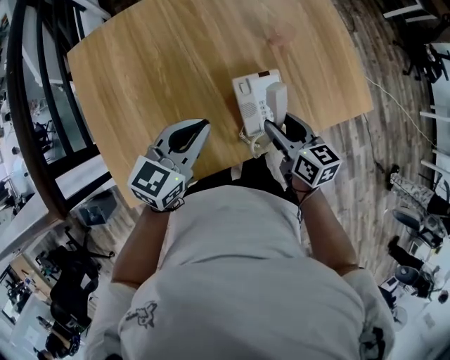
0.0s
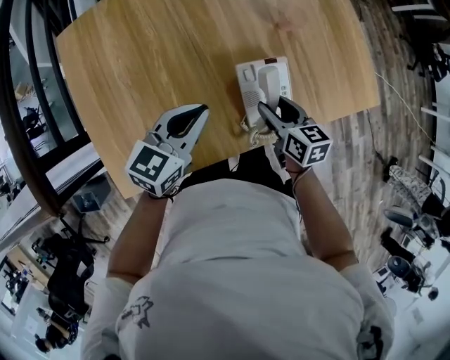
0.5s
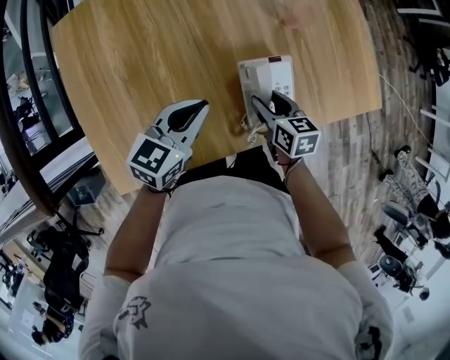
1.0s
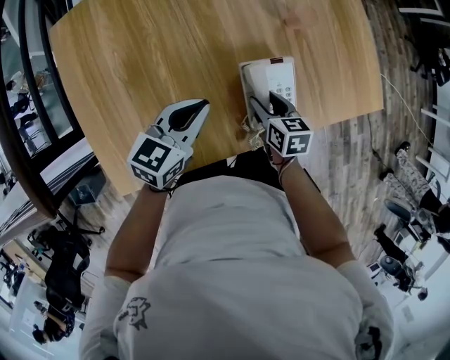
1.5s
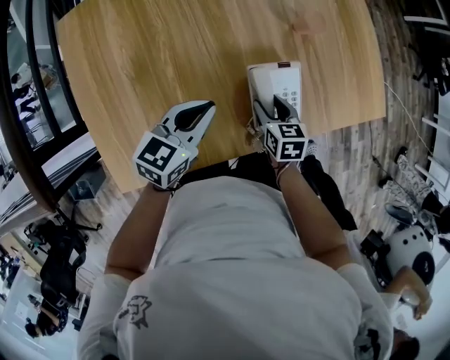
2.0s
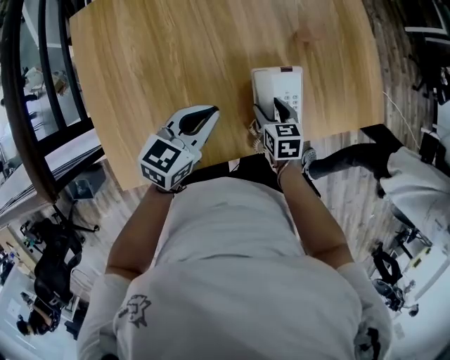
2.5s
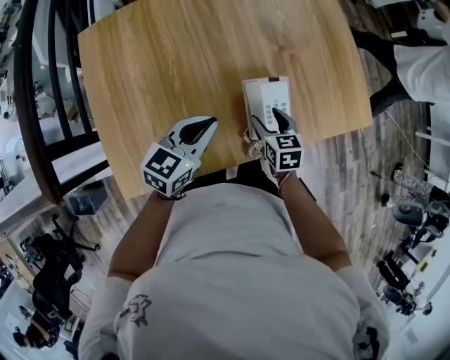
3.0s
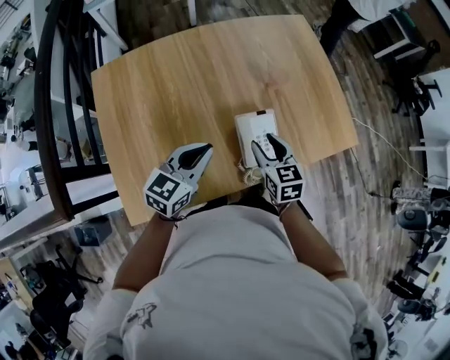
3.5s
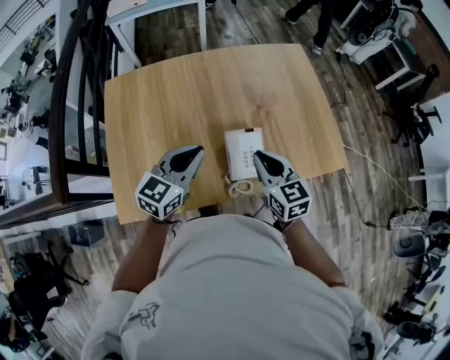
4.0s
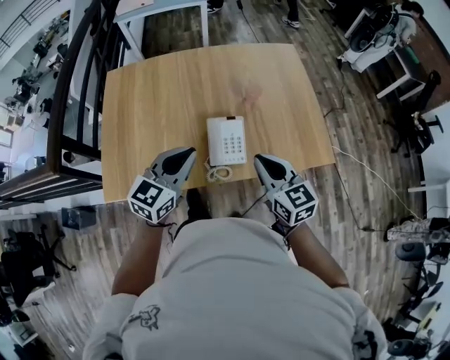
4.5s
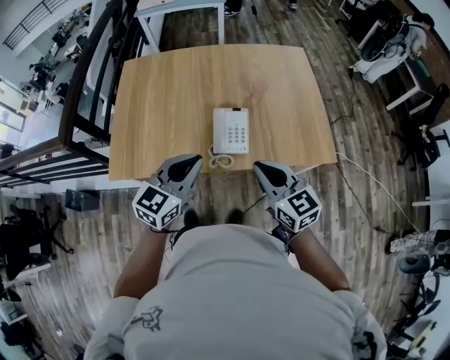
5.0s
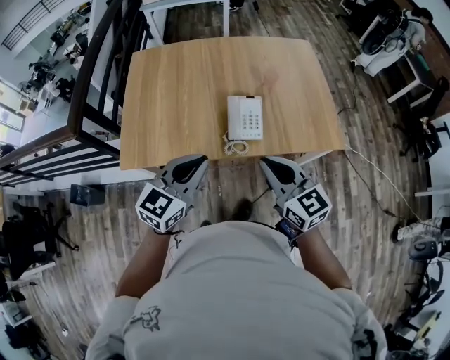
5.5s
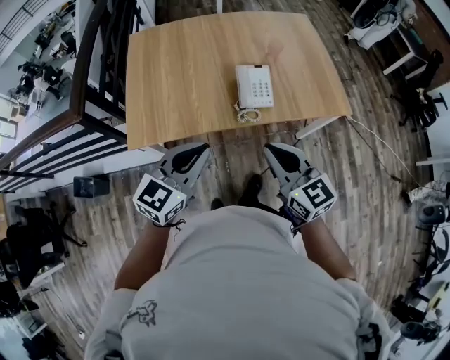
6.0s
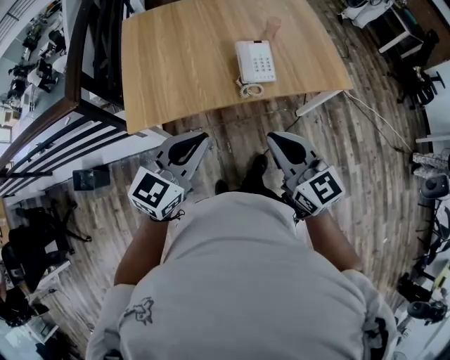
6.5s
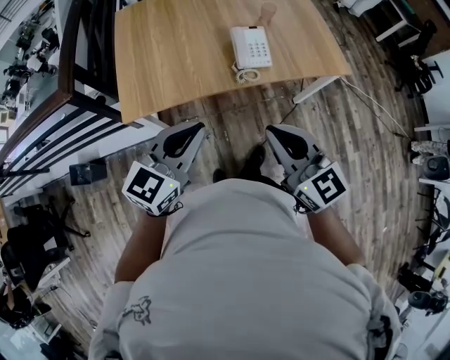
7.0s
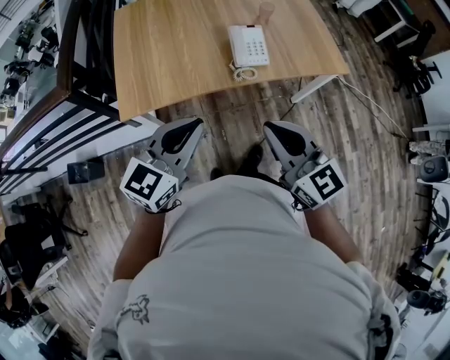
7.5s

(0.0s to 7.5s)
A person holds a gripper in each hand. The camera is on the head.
0.0s - 2.0s: The left gripper moves downward, approximately 10 cm. The right gripper goes some 15 cm downward, and rotates approximately 20 degrees.
2.0s - 4.0s: The left gripper travels upward by some 15 cm, and swivels approximately 20 degrees; the right gripper is displaced upward by roughly 25 cm, changes its angle by some 30 degrees, and closes its fingers.
4.0s - 5.5s: Both grippers move backward, about 25 cm. The right gripper turns by approximately 20 degrees.
5.5s - 7.5s: The grippers both shift backward and to the left by about 15 cm.

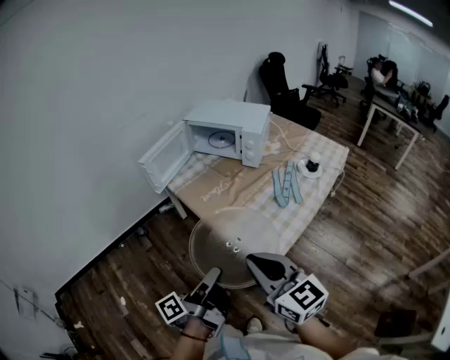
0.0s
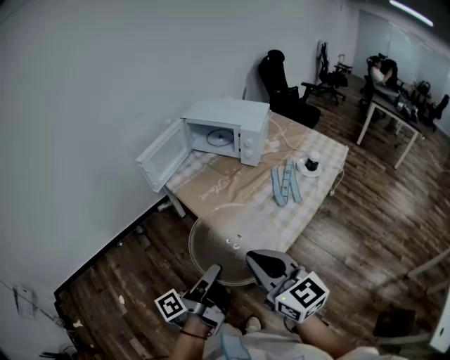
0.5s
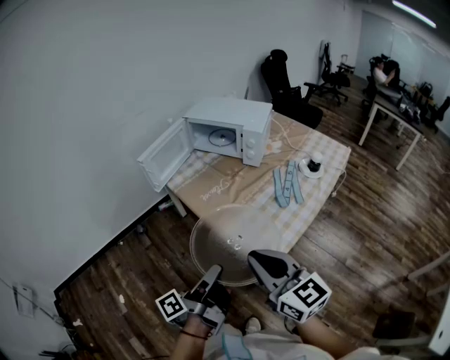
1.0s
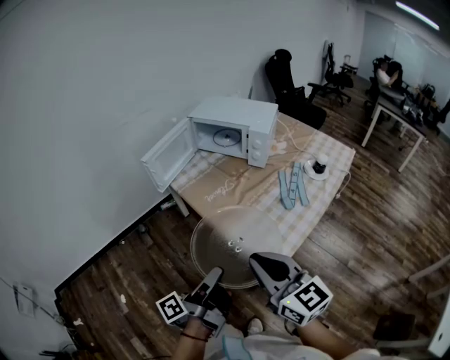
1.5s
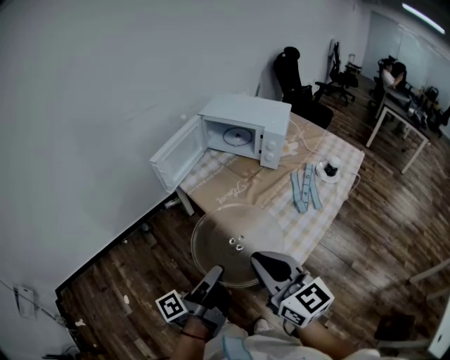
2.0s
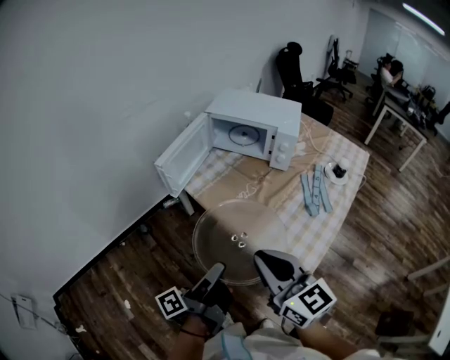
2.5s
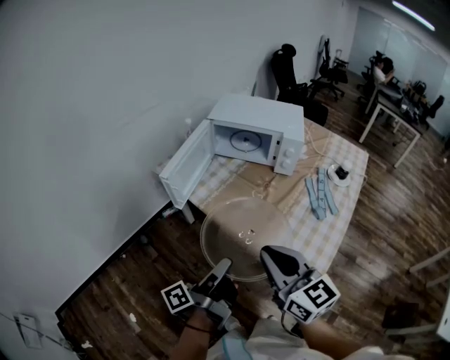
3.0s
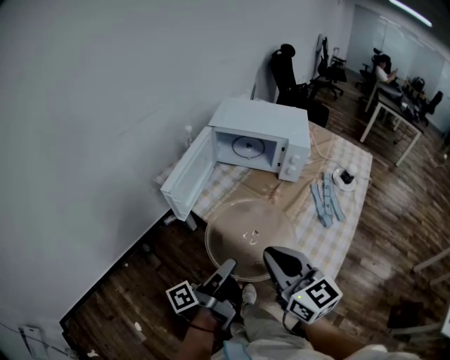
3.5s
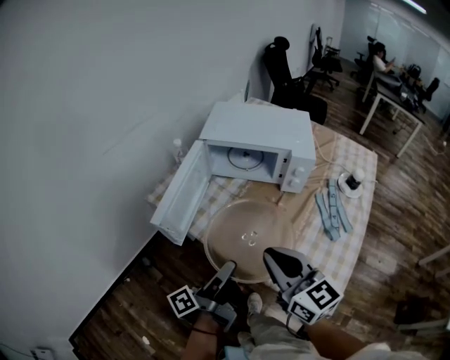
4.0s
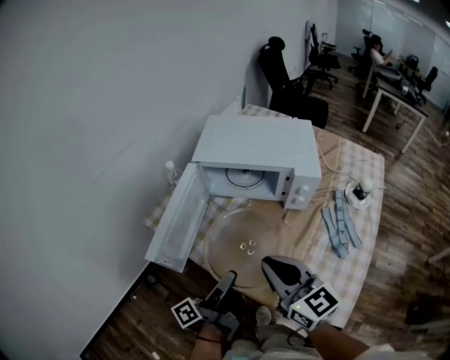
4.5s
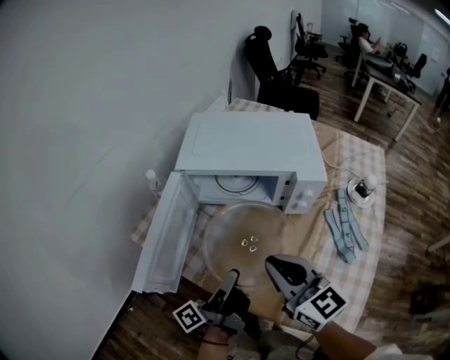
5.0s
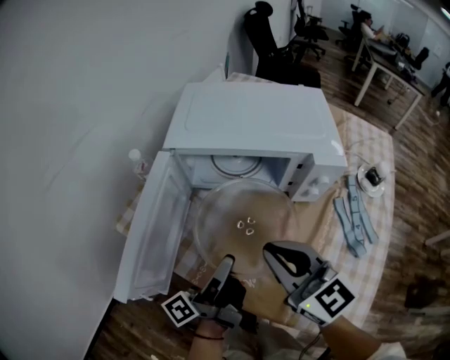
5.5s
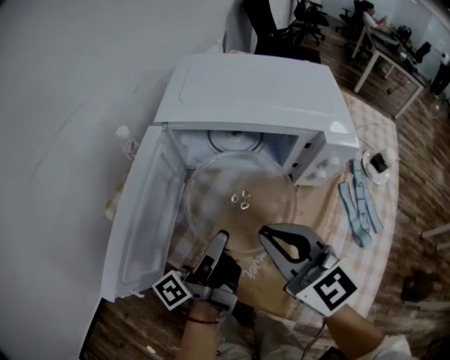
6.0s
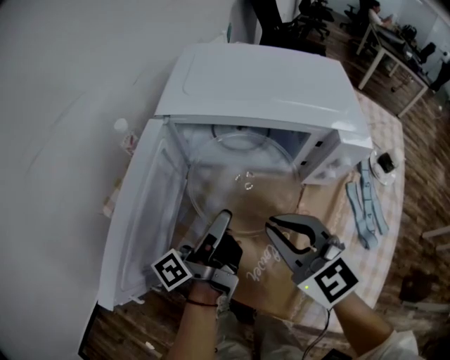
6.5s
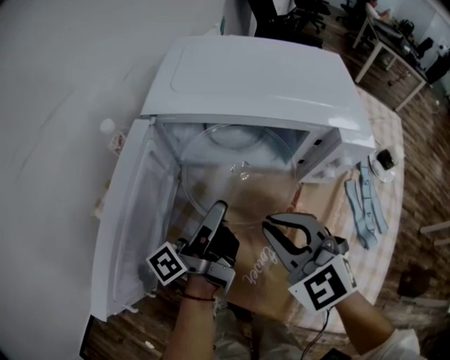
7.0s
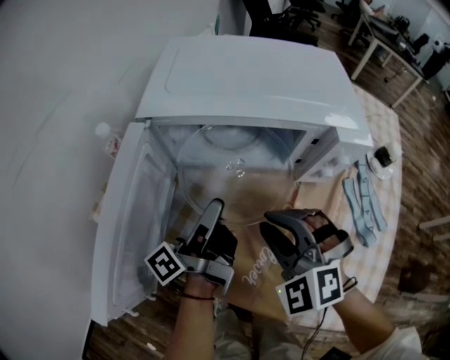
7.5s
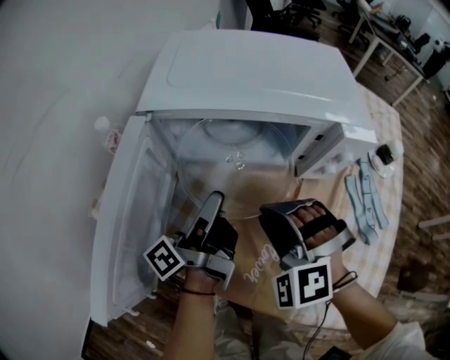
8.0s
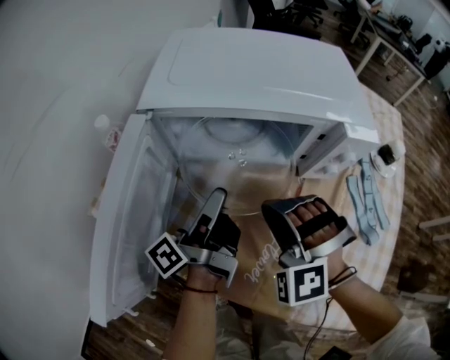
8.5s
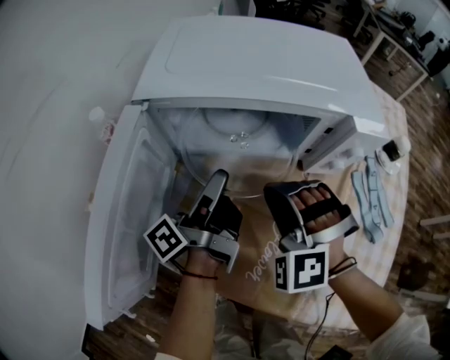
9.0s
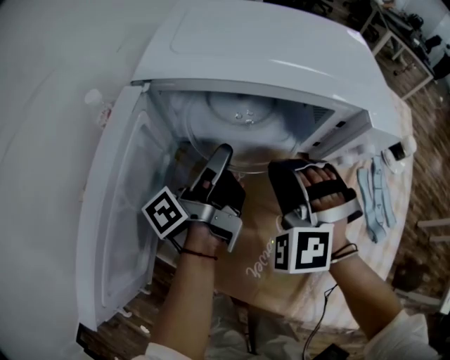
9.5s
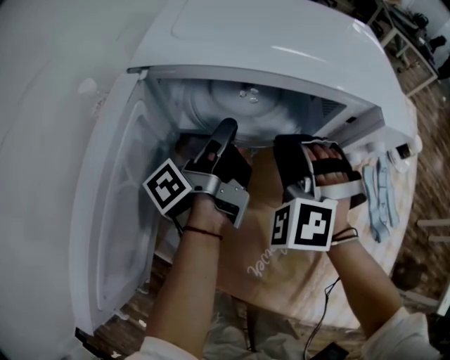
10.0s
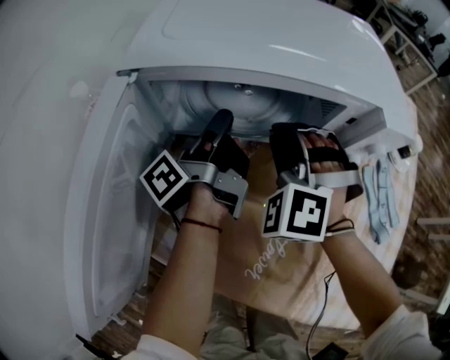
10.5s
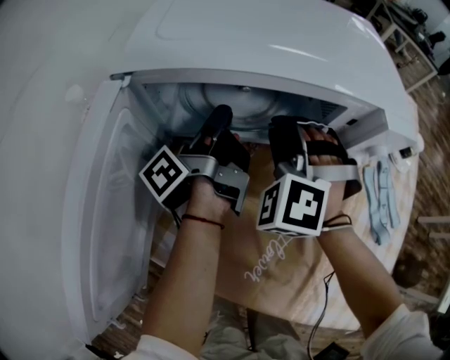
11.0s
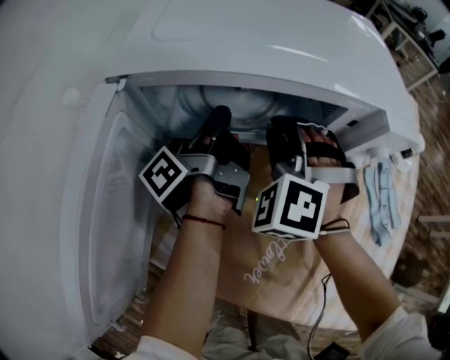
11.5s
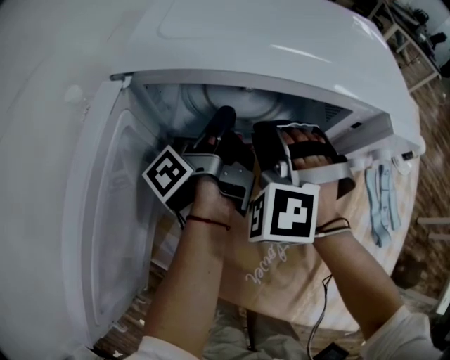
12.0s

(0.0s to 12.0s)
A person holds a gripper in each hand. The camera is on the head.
0.0s - 2.0s: The right gripper moves roughly 10 cm.
2.0s - 4.0s: The right gripper shifts by approximately 25 cm.
4.0s - 6.0s: The right gripper ends up roughly 20 cm from where it was.
6.0s - 8.0s: The right gripper moves downward, approximately 10 cm, and rotates around the line of its fingers by roughly 60 degrees, counterclockwise from behind.
8.0s - 10.0s: The right gripper ends up some 10 cm from where it was.

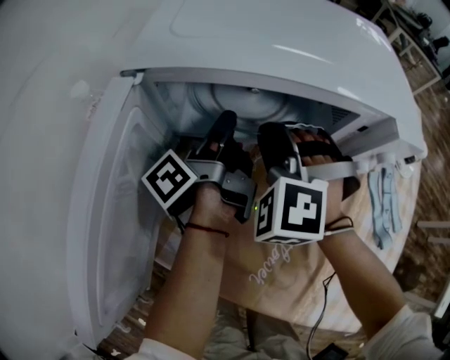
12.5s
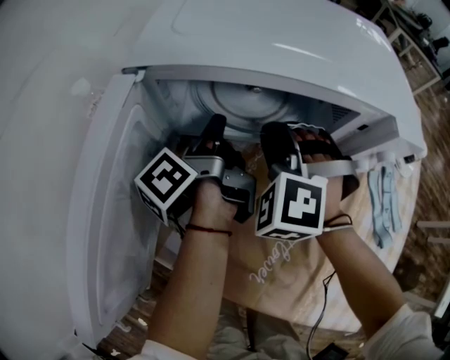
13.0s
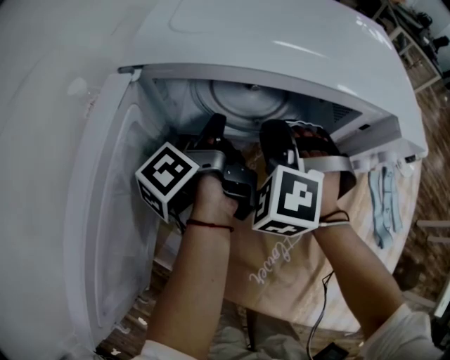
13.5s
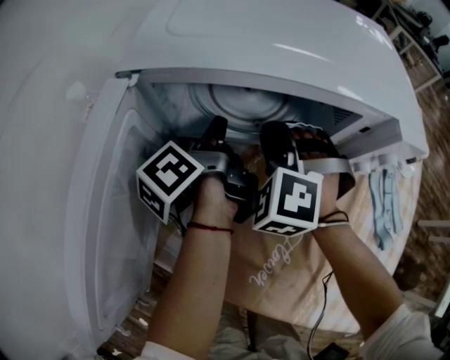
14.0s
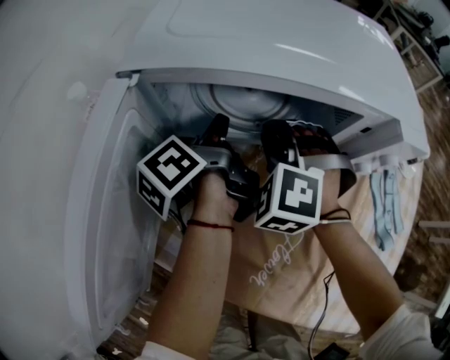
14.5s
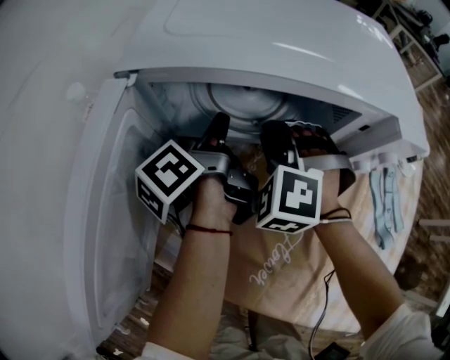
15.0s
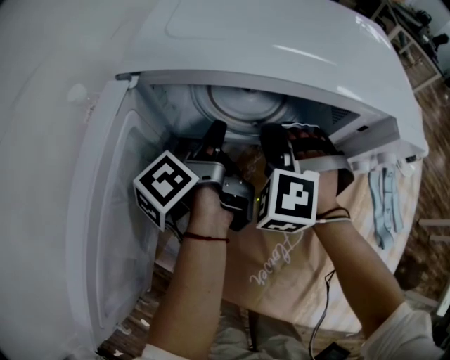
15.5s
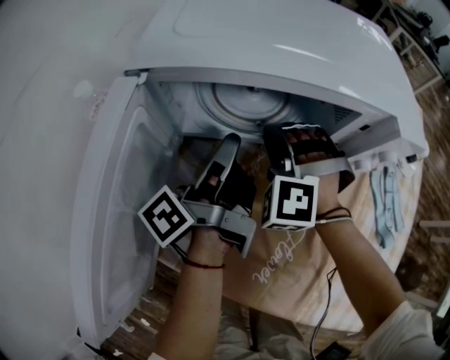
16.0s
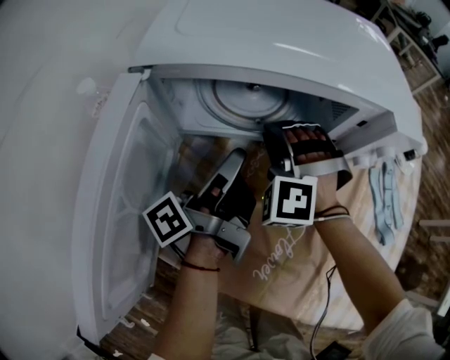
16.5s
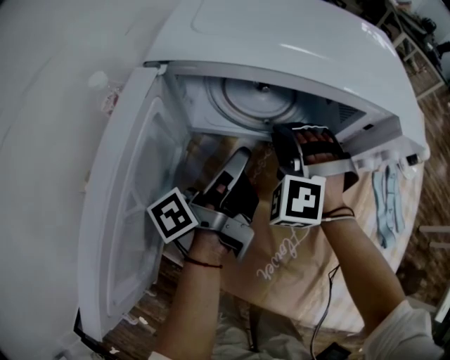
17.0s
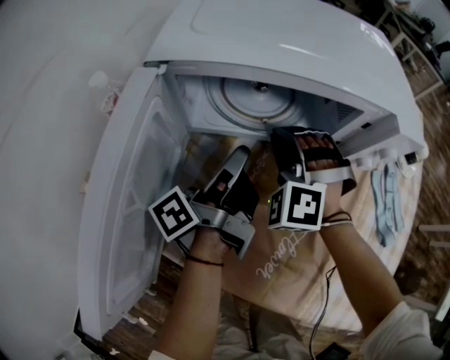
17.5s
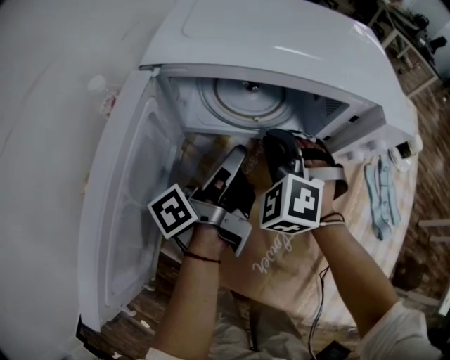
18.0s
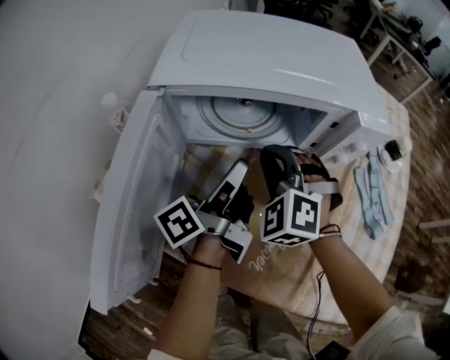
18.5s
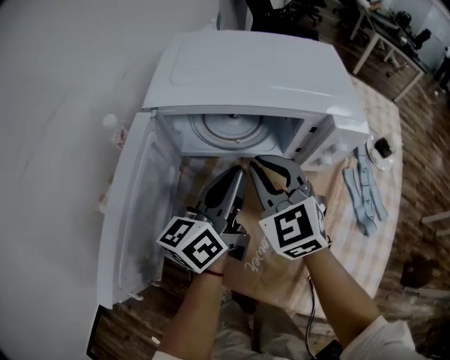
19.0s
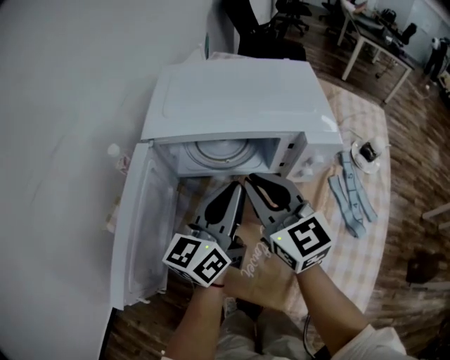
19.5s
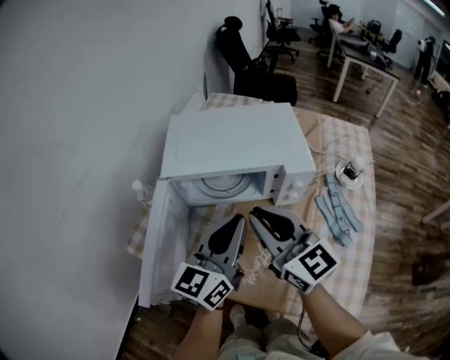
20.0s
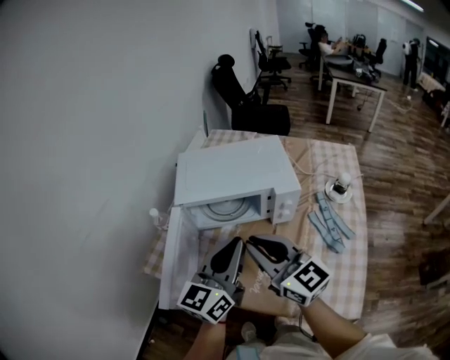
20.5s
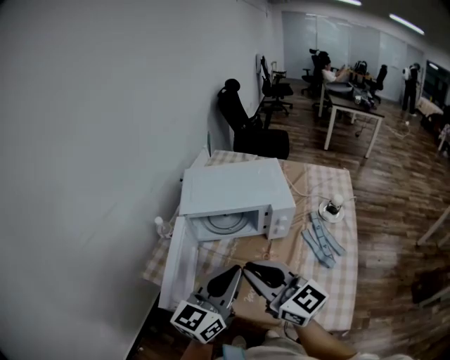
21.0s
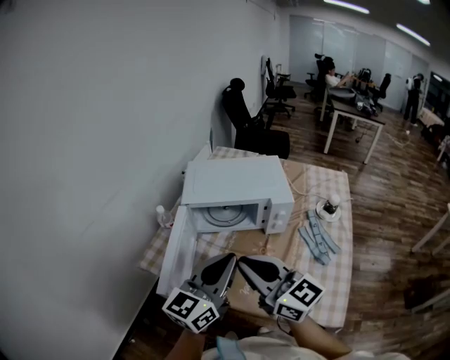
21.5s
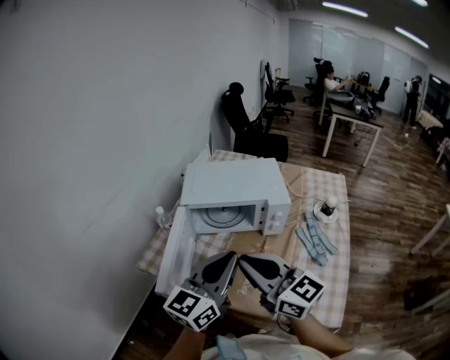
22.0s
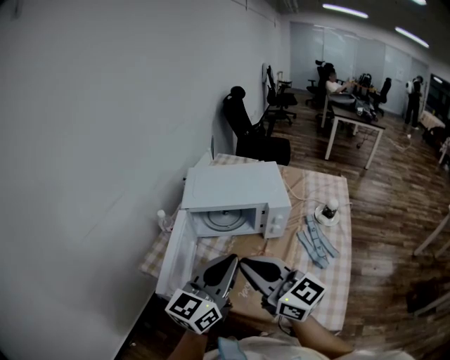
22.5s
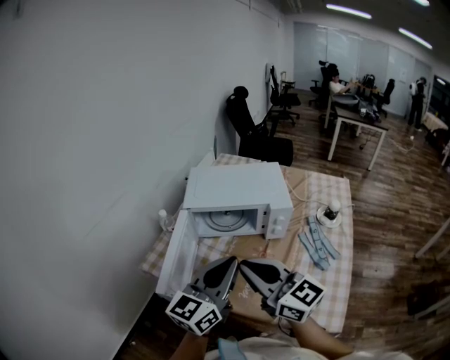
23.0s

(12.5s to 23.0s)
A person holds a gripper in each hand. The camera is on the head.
16.5s - 19.0s: The right gripper heads upward, covering some 10 cm, and twists some 50 degrees clockwise, seen from behind.
19.0s - 21.0s: The right gripper travels upward by some 25 cm, and rotates roughly 40 degrees.
